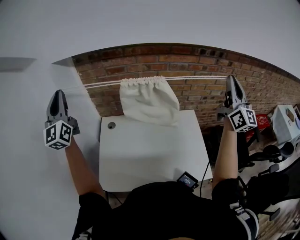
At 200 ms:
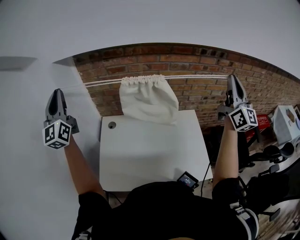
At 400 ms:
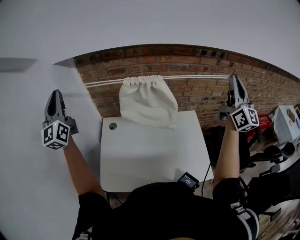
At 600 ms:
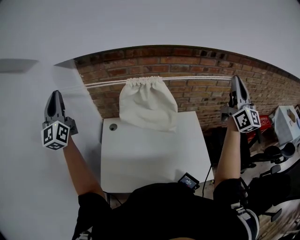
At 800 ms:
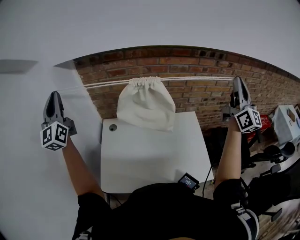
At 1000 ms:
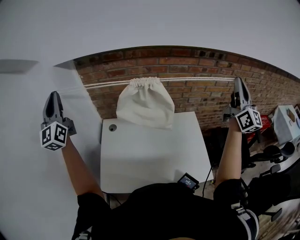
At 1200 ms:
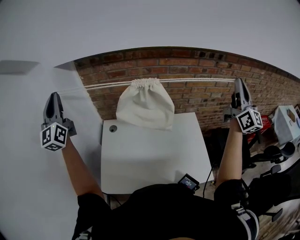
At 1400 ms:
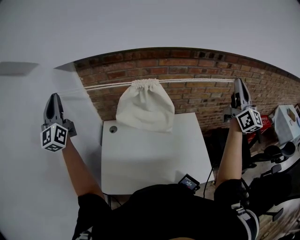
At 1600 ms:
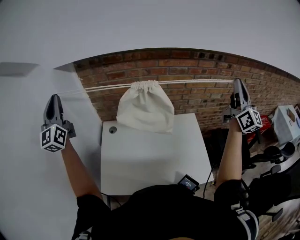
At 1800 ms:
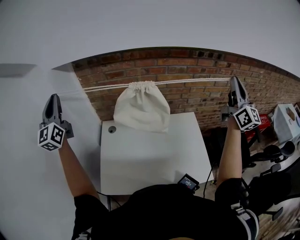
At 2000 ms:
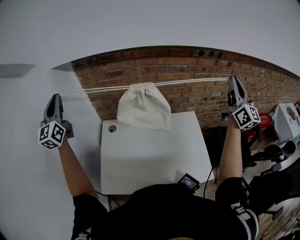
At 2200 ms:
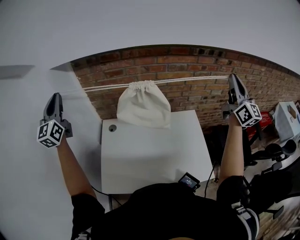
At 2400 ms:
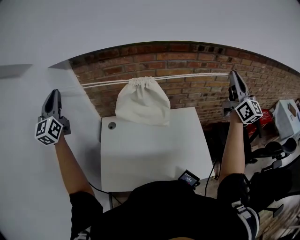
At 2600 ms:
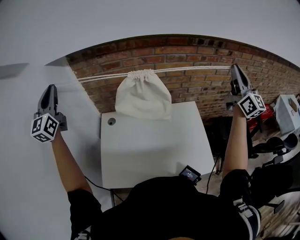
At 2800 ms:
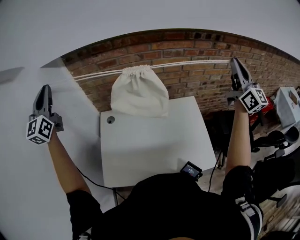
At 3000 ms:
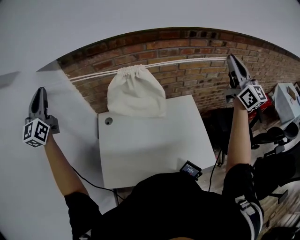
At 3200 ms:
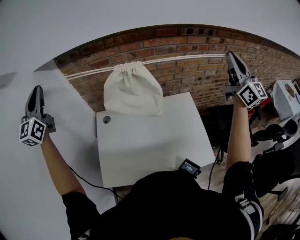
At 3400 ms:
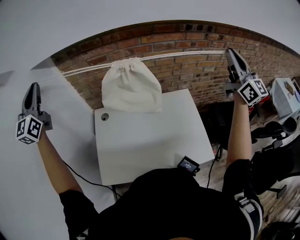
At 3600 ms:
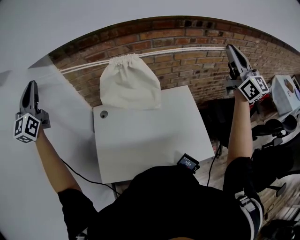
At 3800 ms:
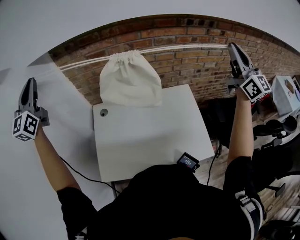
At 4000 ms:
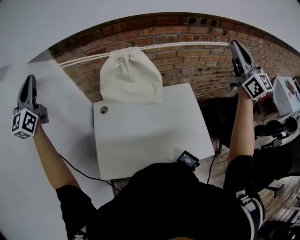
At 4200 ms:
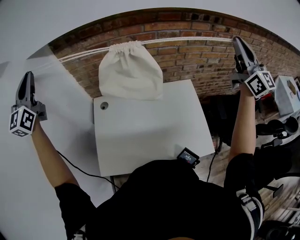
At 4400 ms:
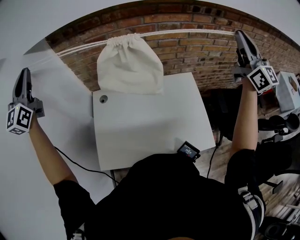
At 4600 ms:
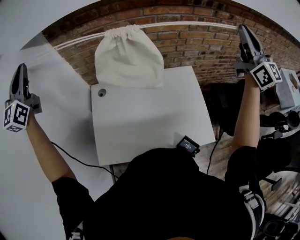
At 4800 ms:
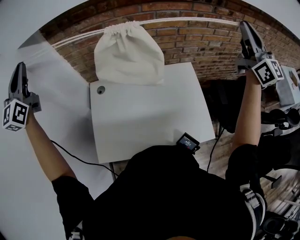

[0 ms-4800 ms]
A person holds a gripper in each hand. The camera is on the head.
0 ms to 4800 ms: The grippers move only a little.

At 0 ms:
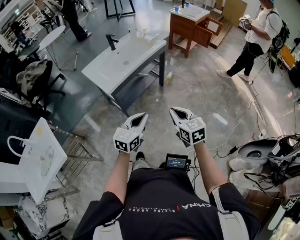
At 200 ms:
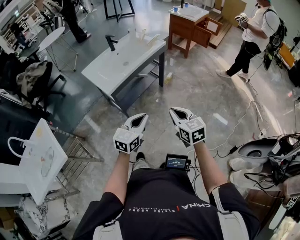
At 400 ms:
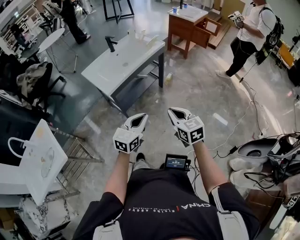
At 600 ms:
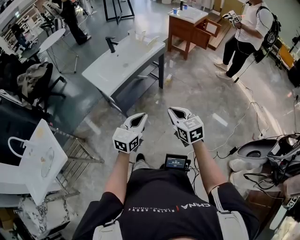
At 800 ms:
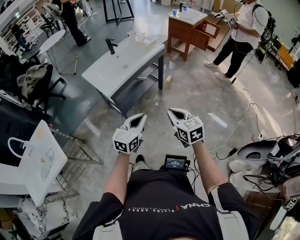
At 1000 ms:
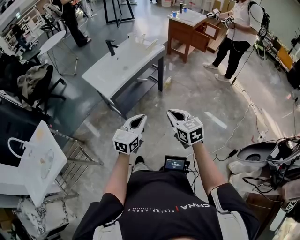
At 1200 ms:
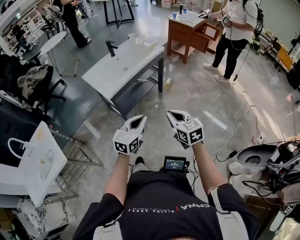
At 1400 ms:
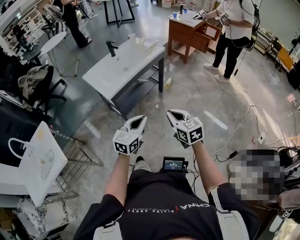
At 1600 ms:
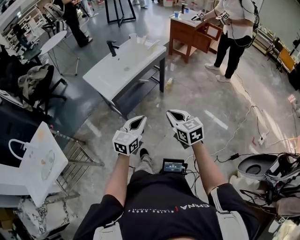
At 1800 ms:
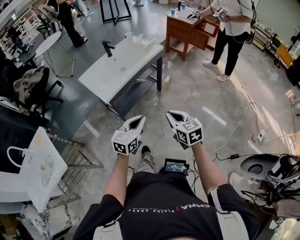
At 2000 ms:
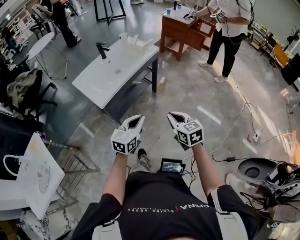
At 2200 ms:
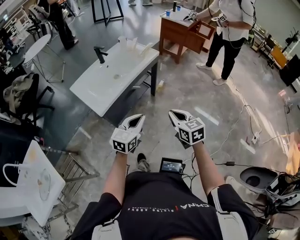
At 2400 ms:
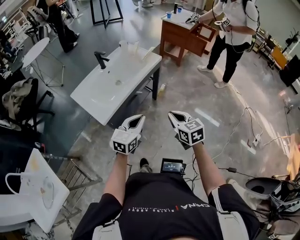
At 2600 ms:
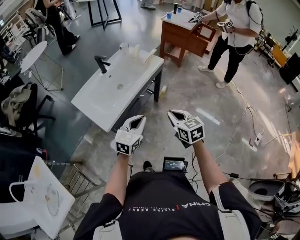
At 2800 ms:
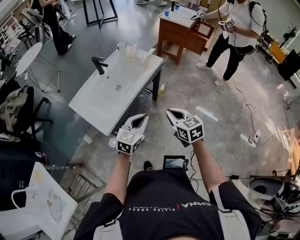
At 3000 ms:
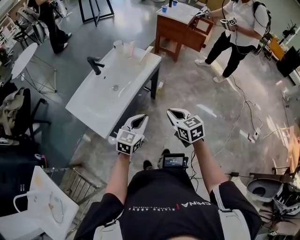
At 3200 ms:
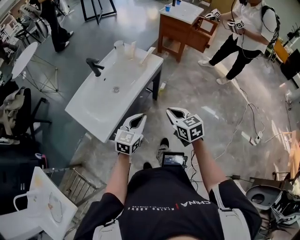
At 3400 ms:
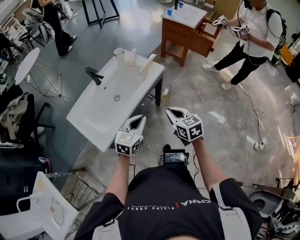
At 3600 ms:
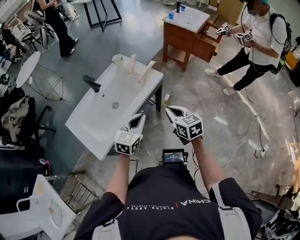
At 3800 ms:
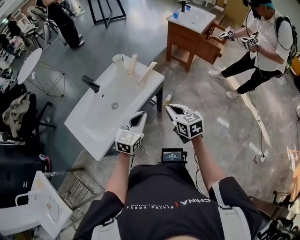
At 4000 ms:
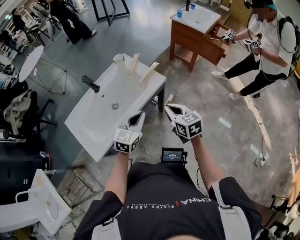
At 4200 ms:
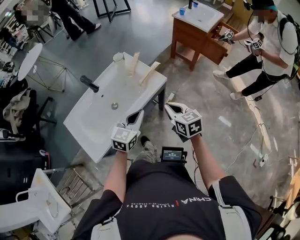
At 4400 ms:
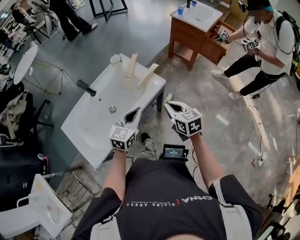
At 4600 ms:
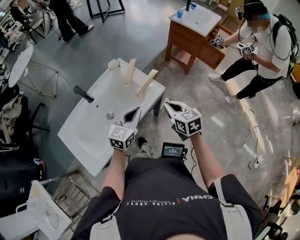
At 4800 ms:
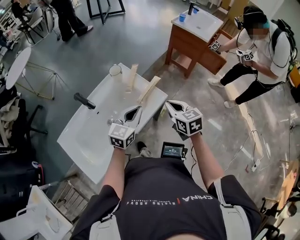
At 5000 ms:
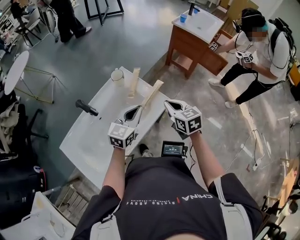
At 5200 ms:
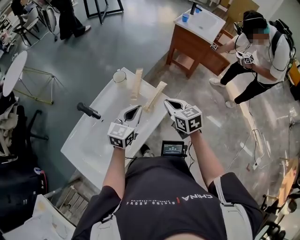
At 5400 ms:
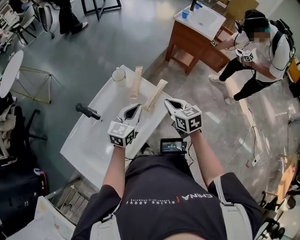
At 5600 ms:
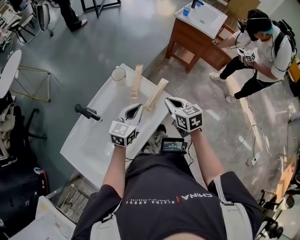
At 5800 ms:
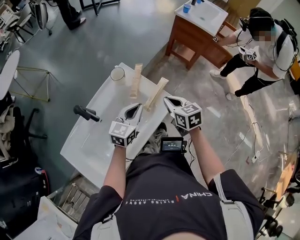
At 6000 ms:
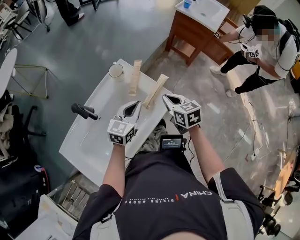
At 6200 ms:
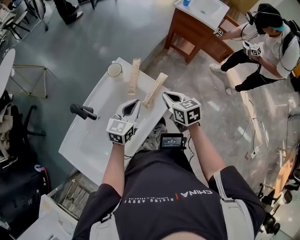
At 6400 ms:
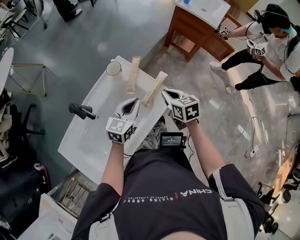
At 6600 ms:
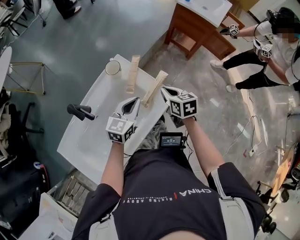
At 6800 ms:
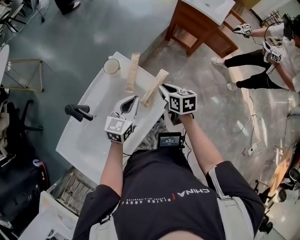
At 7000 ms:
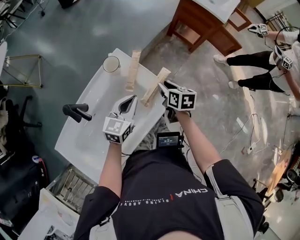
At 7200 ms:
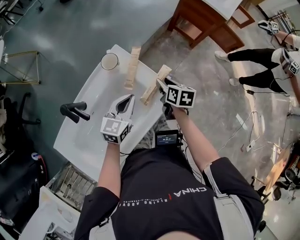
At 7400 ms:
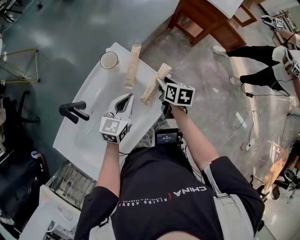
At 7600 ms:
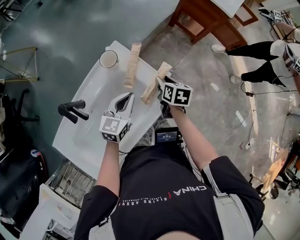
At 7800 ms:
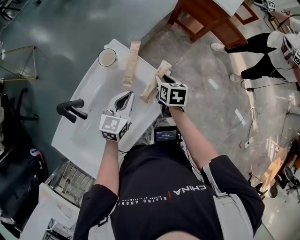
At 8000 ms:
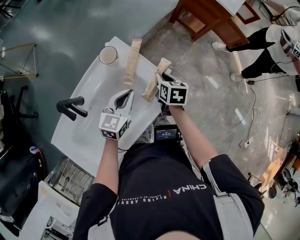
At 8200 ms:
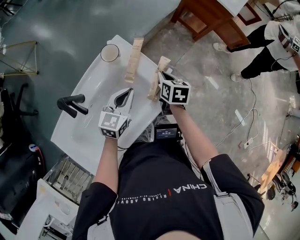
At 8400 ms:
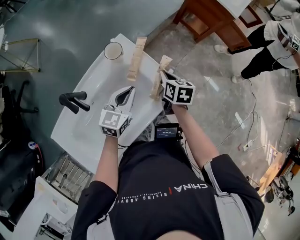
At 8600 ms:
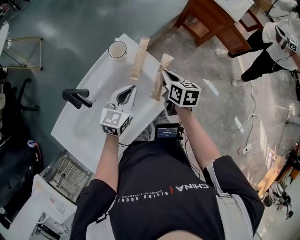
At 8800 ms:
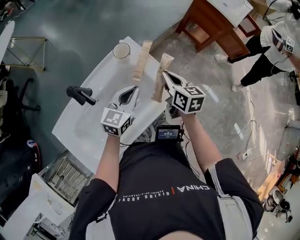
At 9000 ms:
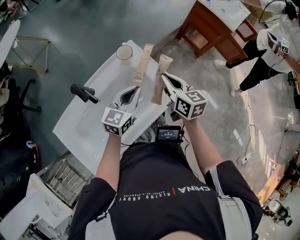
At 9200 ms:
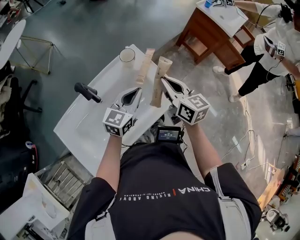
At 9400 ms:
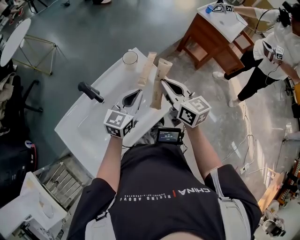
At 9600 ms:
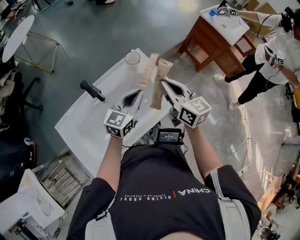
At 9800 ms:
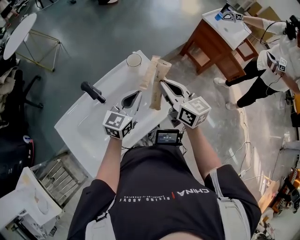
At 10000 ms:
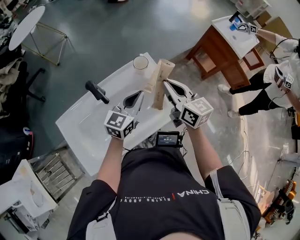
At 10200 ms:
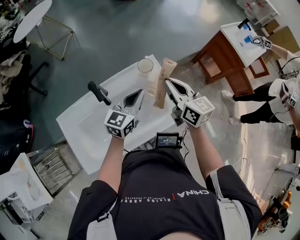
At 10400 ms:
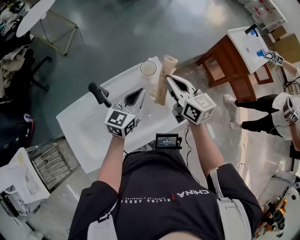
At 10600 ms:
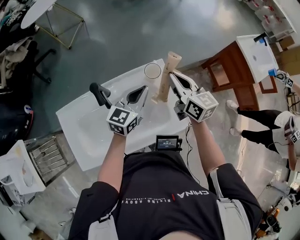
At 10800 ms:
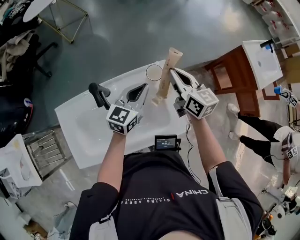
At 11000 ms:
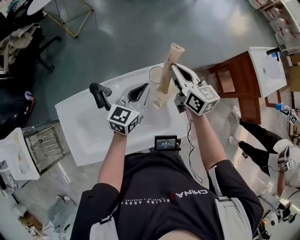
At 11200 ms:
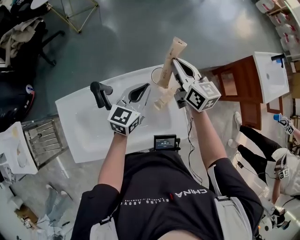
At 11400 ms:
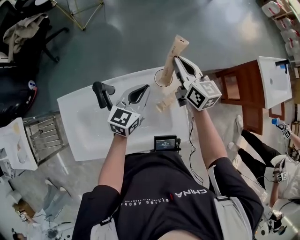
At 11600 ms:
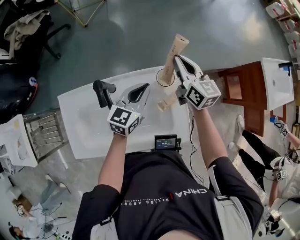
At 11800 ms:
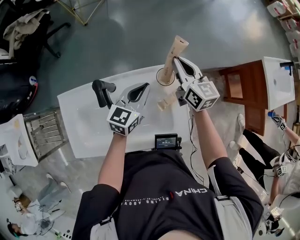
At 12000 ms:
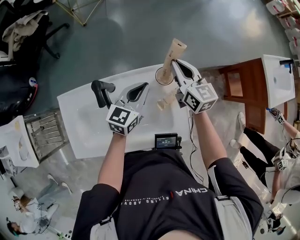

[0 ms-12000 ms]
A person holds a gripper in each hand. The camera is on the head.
0 ms to 1600 ms: The grippers stay close to where they were, moving slightly.
1600 ms to 3000 ms: The grippers both shift forward by some 25 cm.
3000 ms to 4400 ms: Both grippers travel together forward, about 30 cm.
4400 ms to 6000 ms: Both grippers travel together forward, approximately 20 cm.
6000 ms to 7600 ms: The right gripper goes roughly 15 cm downward and forward, swivels approximately 30 degrees, and opens its fingers. The left gripper heads downward, covering roughly 5 cm.
7600 ms to 9000 ms: The right gripper travels upward by some 15 cm, rotates about 30 degrees, and closes up. The left gripper moves upward, roughly 5 cm.
9000 ms to 10400 ms: The right gripper shifts roughly 10 cm forward, upward and to the left, and changes its angle by roughly 20 degrees. Meanwhile the left gripper goes about 5 cm forward and to the left.
10400 ms to 12000 ms: The left gripper travels forward by approximately 10 cm; the right gripper moves forward, about 15 cm.

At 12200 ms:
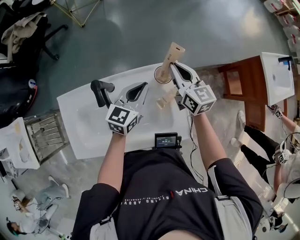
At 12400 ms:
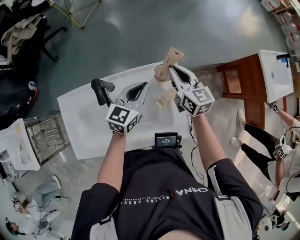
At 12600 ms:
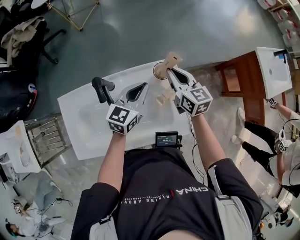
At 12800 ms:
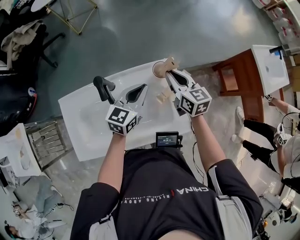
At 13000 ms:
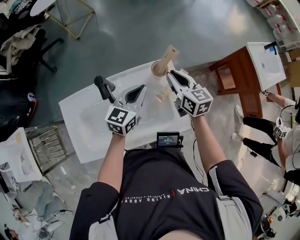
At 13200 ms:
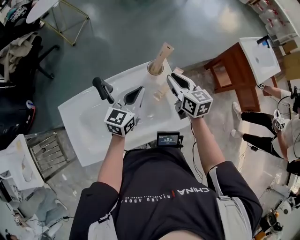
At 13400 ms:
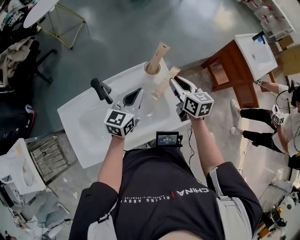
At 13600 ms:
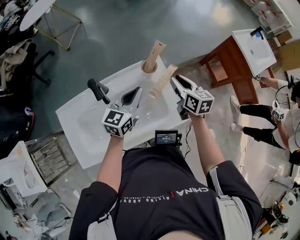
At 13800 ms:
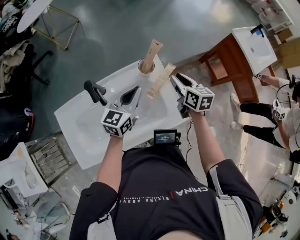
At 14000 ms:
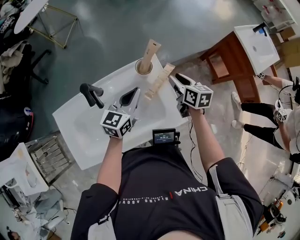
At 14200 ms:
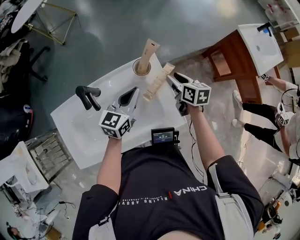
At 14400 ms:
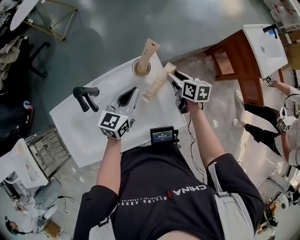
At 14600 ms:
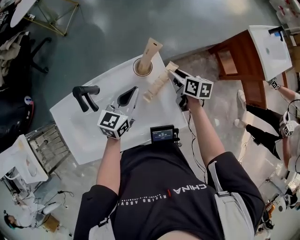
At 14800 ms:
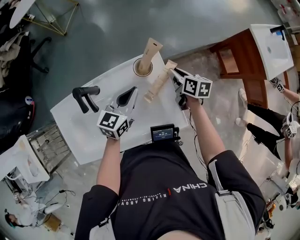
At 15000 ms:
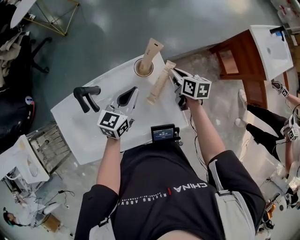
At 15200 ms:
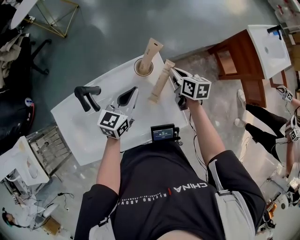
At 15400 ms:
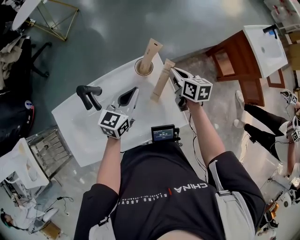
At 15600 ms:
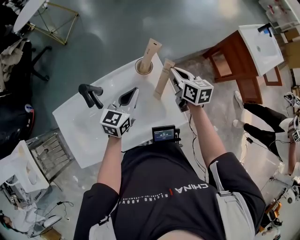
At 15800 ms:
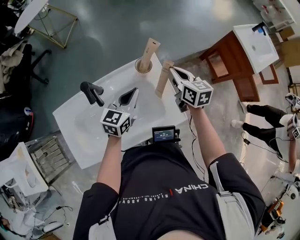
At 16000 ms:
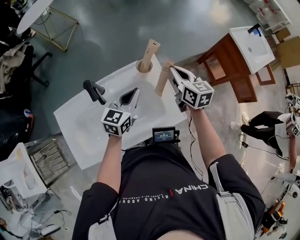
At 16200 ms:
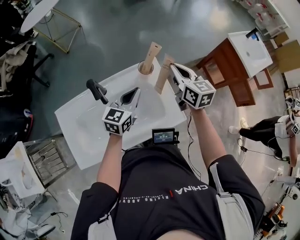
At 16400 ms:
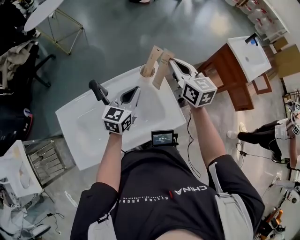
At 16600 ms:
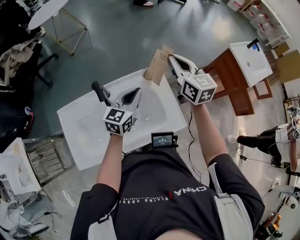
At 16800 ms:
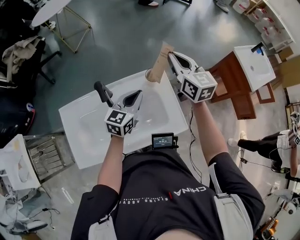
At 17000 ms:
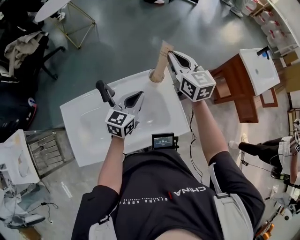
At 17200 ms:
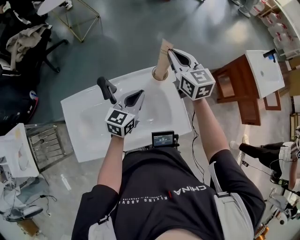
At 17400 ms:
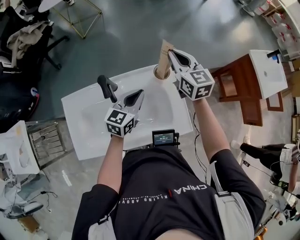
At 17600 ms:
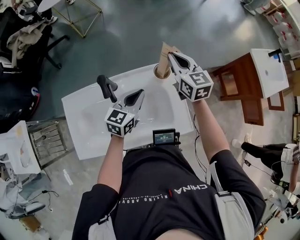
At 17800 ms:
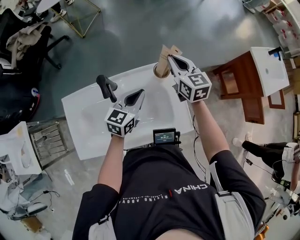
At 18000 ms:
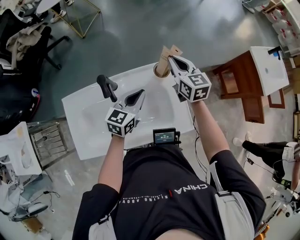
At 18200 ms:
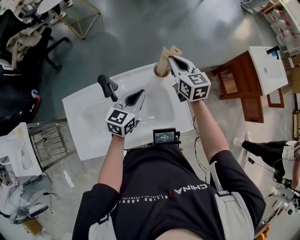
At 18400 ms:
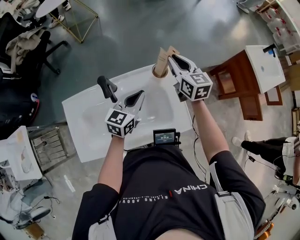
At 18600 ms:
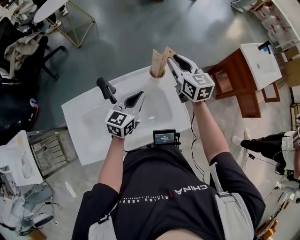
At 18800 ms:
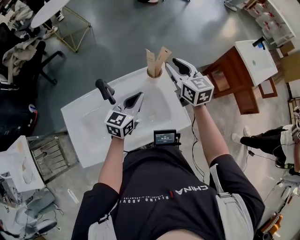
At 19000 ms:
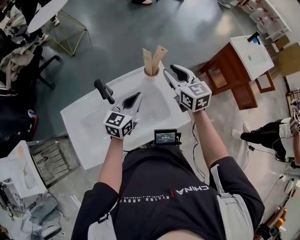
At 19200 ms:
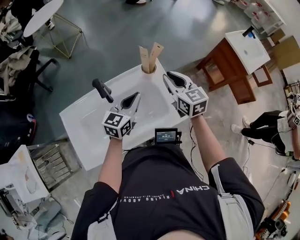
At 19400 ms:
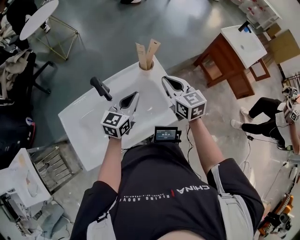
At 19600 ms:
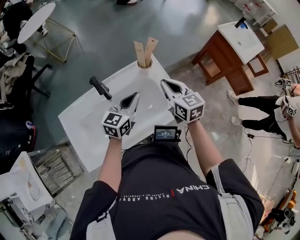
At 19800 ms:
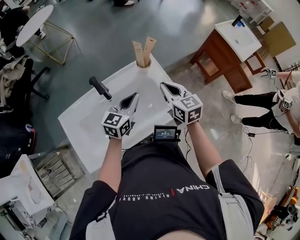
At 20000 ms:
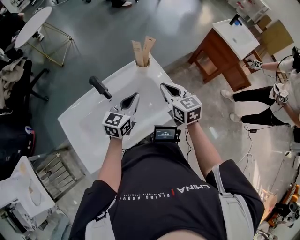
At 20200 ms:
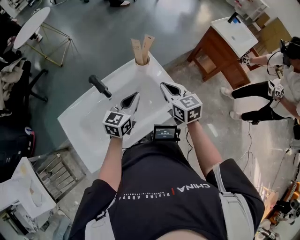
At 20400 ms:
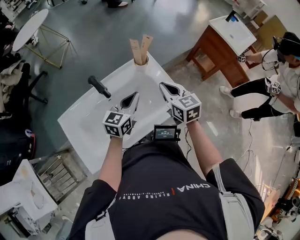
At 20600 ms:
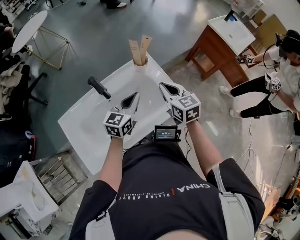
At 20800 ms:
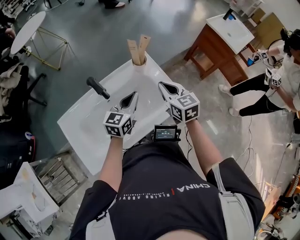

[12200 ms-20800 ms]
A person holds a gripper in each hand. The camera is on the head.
12200 ms to 13600 ms: The left gripper heads backward, covering about 5 cm. Meanwhile the right gripper goes roughly 15 cm backward and to the right, changes its angle by about 20 degrees, and opens up.
13600 ms to 15000 ms: The right gripper is displaced downward and forward by roughly 15 cm, and turns by roughly 20 degrees, while the left gripper heads downward, covering roughly 5 cm.
15000 ms to 16600 ms: The left gripper is displaced upward by about 10 cm, while the right gripper goes roughly 25 cm upward, and changes its angle by approximately 40 degrees.
16600 ms to 18000 ms: The right gripper travels downward by approximately 10 cm.
18000 ms to 19400 ms: The left gripper shifts roughly 5 cm backward, while the right gripper shifts approximately 15 cm backward, and opens, then closes once more.
19400 ms to 20800 ms: The right gripper is displaced backward by some 5 cm.
